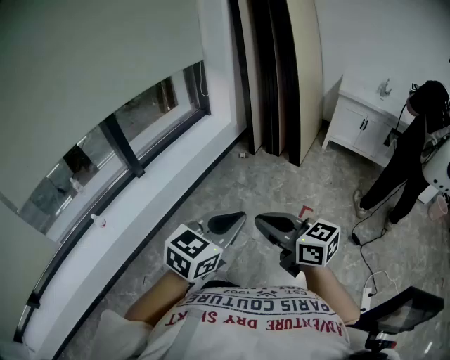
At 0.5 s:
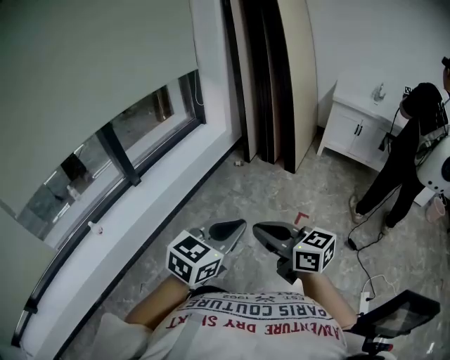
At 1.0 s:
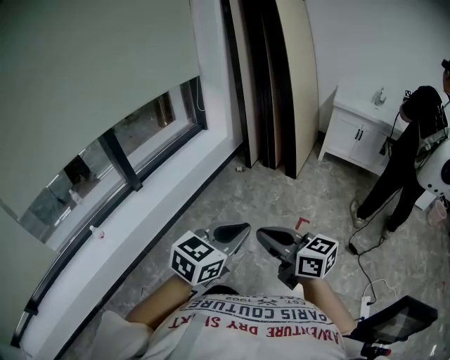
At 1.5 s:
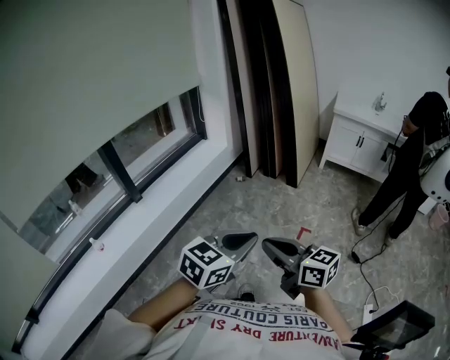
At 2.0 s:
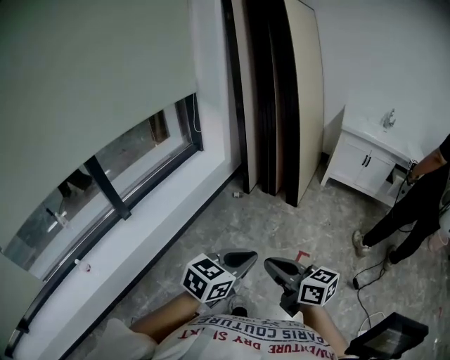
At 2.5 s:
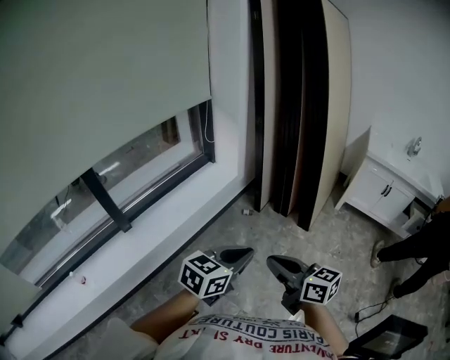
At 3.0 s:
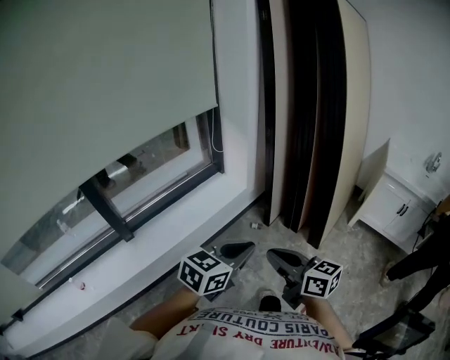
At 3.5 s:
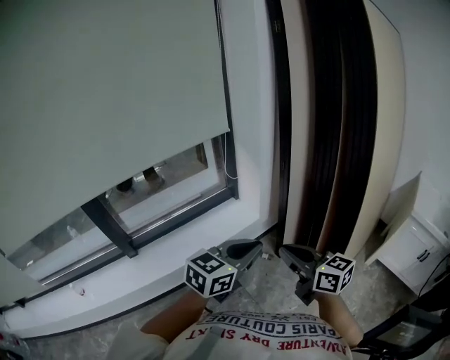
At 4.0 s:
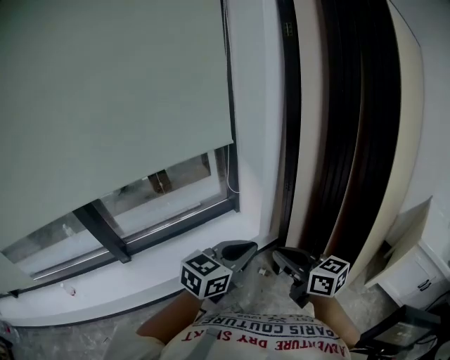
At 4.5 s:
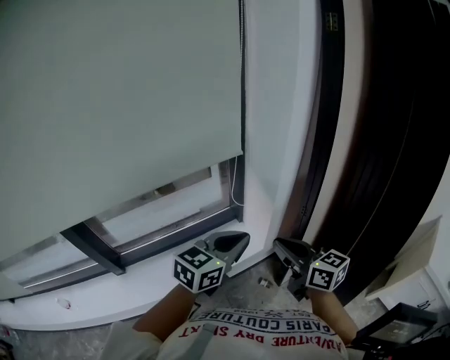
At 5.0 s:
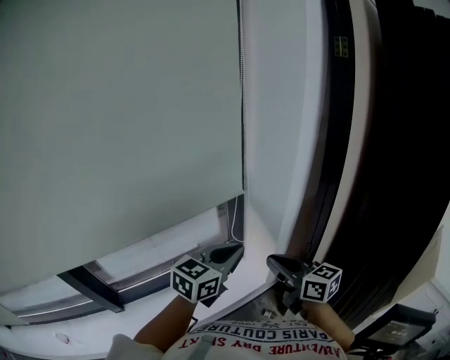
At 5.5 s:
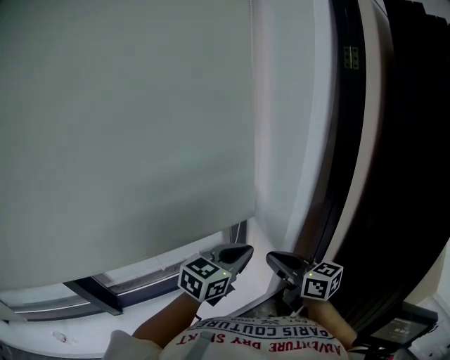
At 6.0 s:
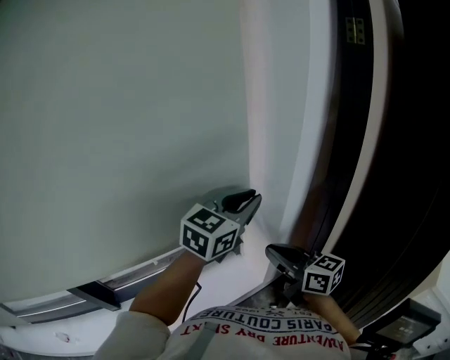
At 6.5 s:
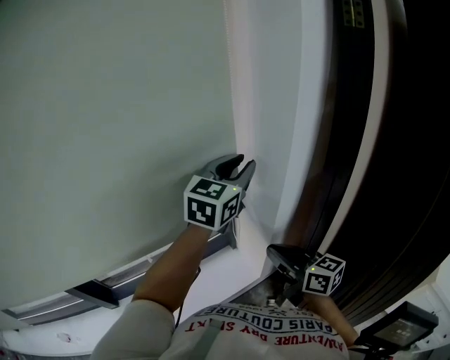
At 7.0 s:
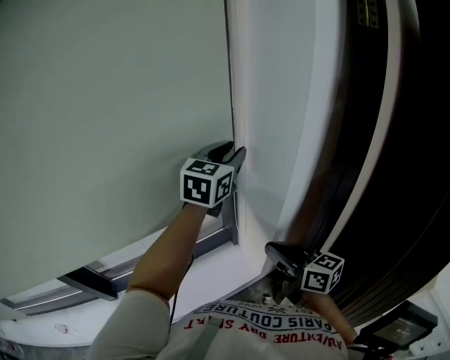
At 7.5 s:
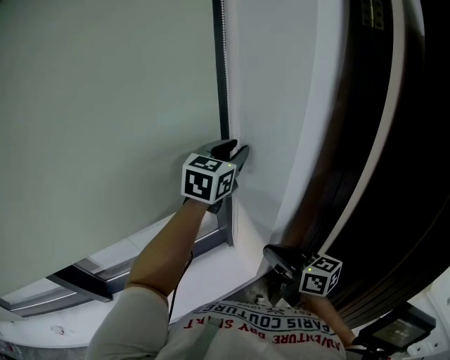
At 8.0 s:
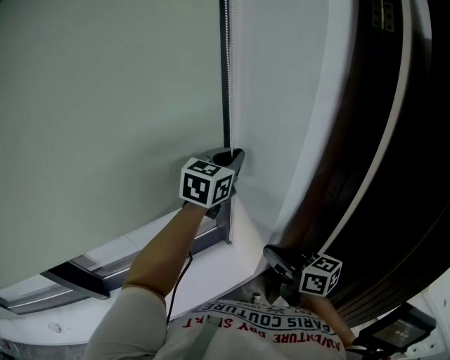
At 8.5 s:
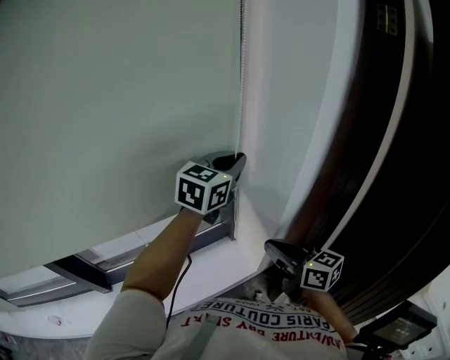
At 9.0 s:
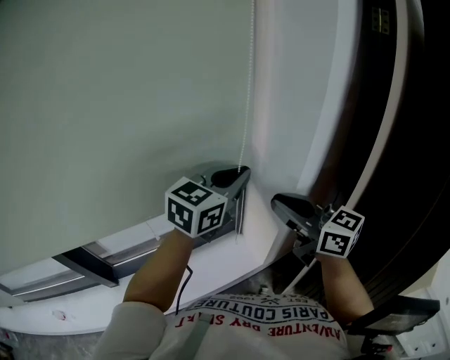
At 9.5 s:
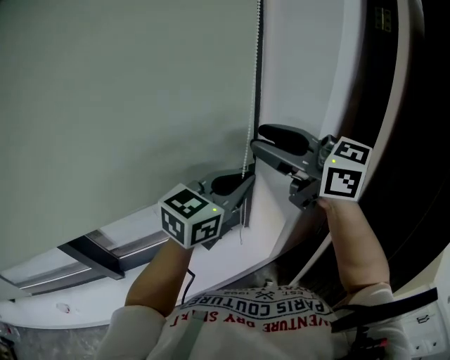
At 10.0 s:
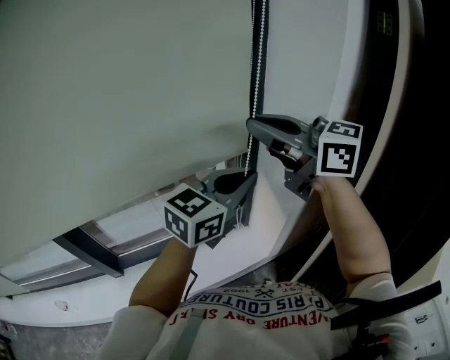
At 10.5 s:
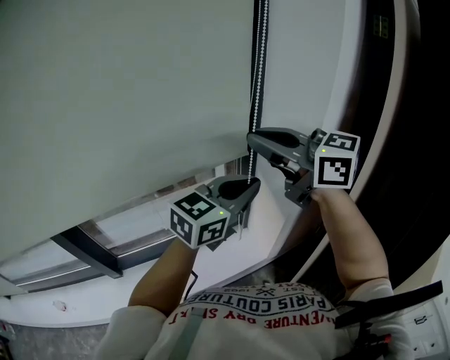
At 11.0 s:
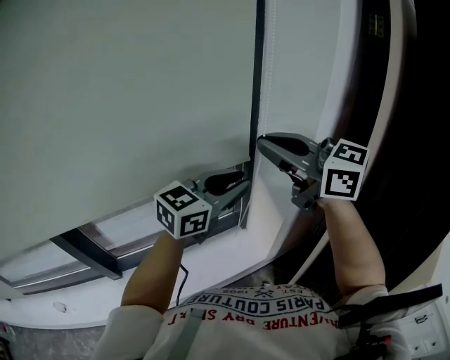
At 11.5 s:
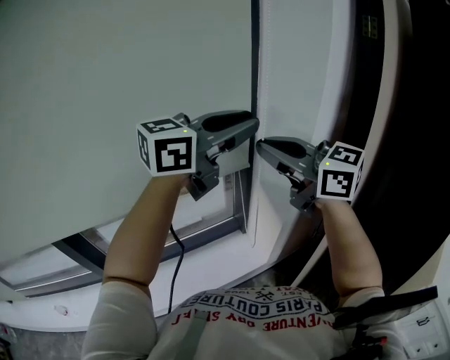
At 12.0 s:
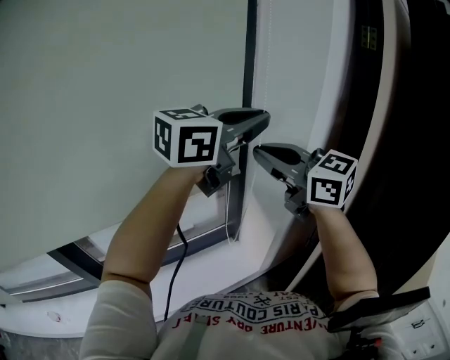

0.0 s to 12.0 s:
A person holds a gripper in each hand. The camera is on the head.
0.0 to 2.0 s: Both grippers travel together forward, approximately 20 cm.
2.0 to 4.0 s: Both grippers are carried about 70 cm. The right gripper rotates about 30 degrees. The left gripper turns by some 30 degrees.
4.0 to 6.0 s: Both grippers move forward, roughly 40 cm.
6.0 to 8.0 s: The left gripper shifts about 15 cm forward.
8.0 to 10.0 s: The right gripper is displaced upward and to the left by roughly 30 cm, turns by about 30 degrees, and opens, then closes again, while the left gripper shifts roughly 20 cm backward.
10.0 to 12.0 s: The left gripper goes roughly 15 cm upward, and opens, then closes again.

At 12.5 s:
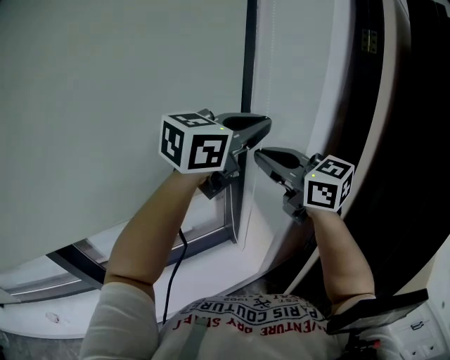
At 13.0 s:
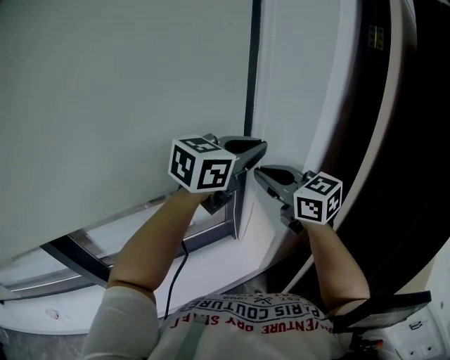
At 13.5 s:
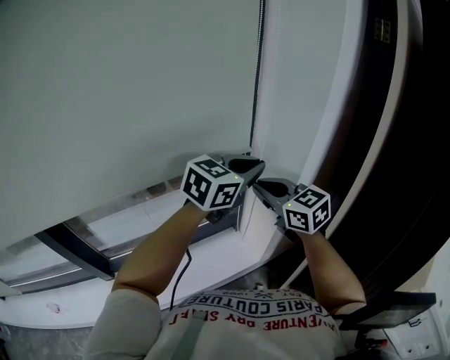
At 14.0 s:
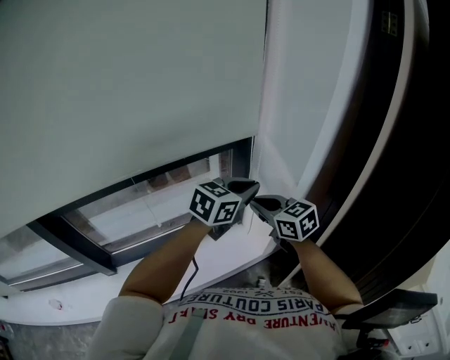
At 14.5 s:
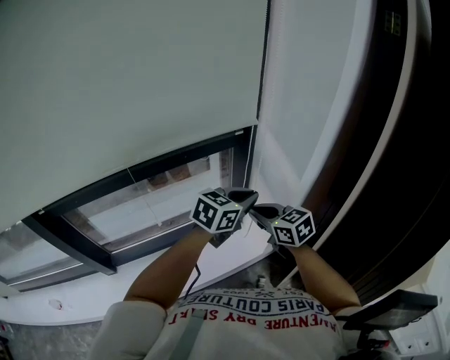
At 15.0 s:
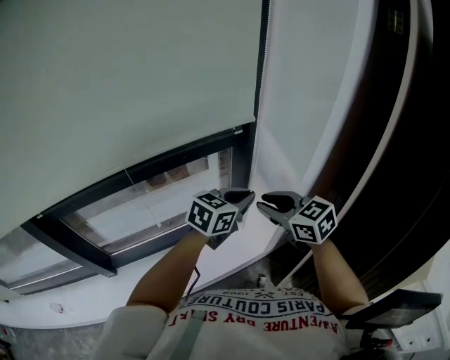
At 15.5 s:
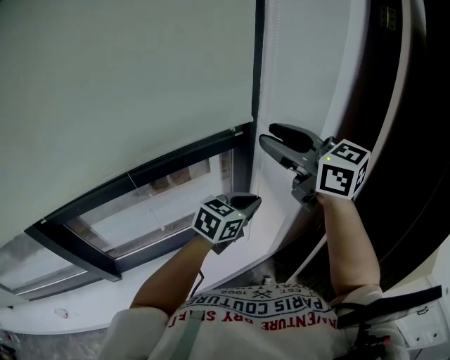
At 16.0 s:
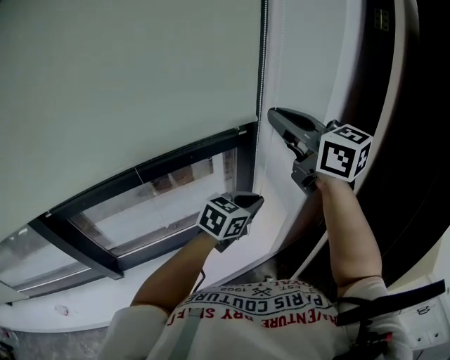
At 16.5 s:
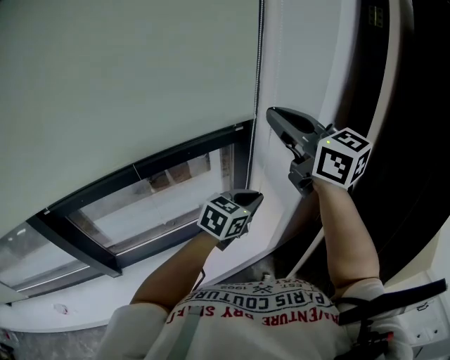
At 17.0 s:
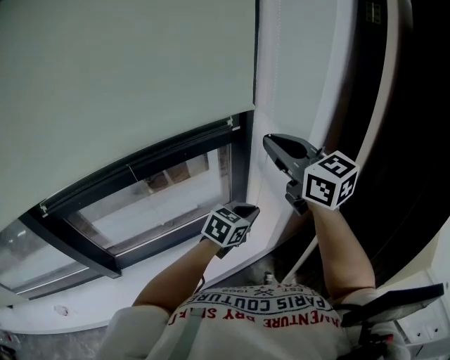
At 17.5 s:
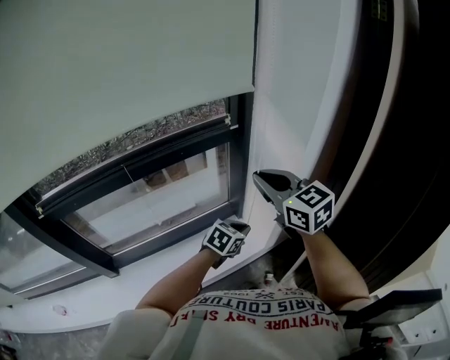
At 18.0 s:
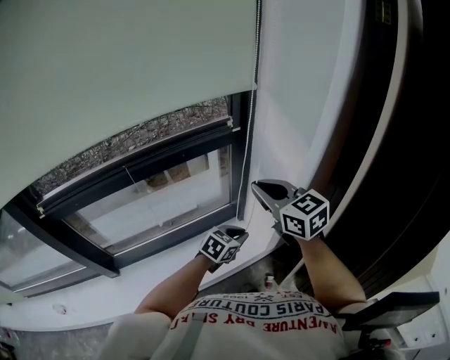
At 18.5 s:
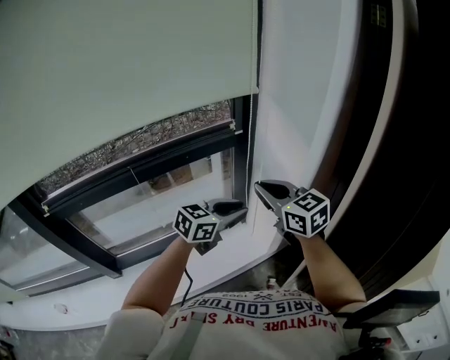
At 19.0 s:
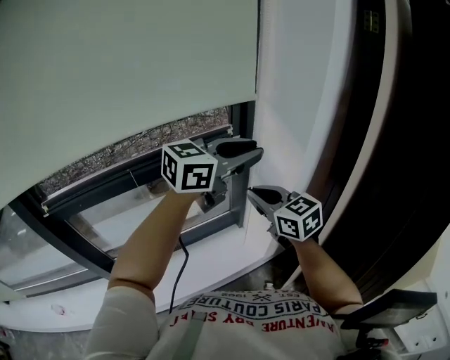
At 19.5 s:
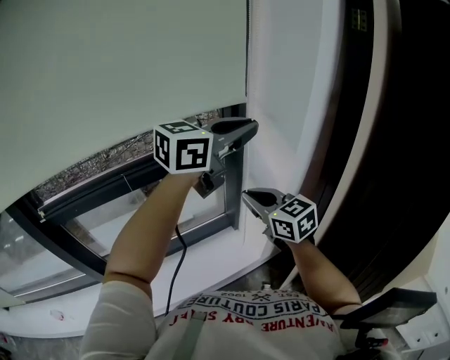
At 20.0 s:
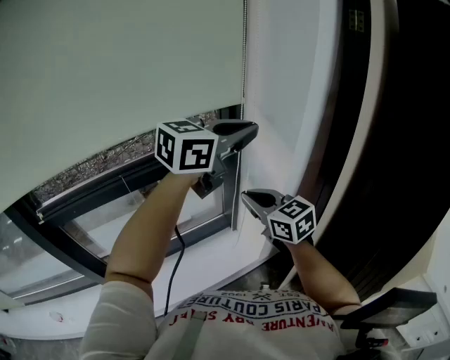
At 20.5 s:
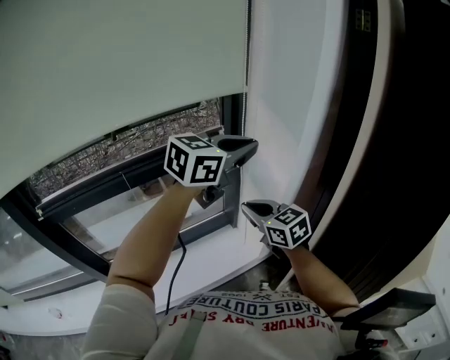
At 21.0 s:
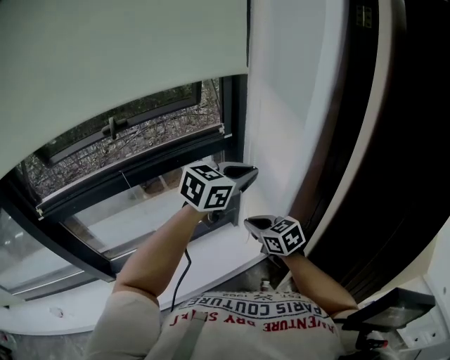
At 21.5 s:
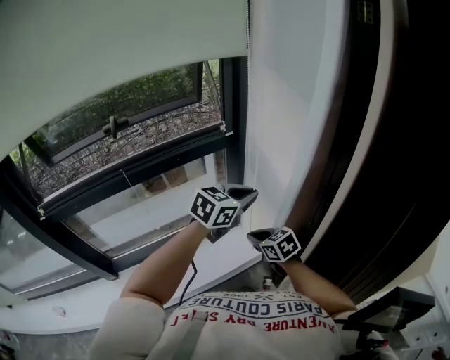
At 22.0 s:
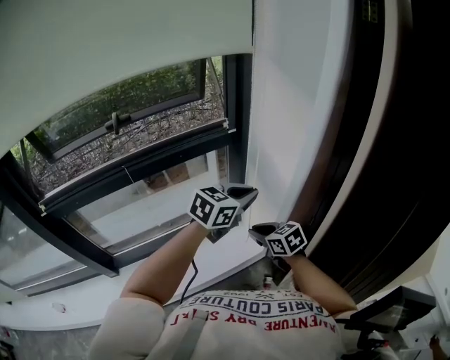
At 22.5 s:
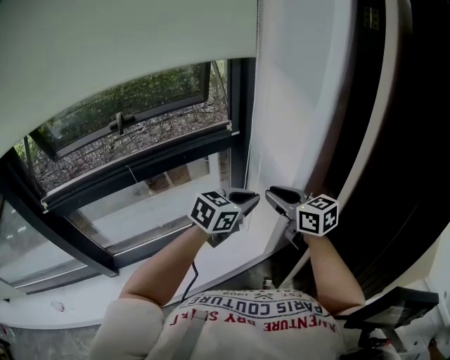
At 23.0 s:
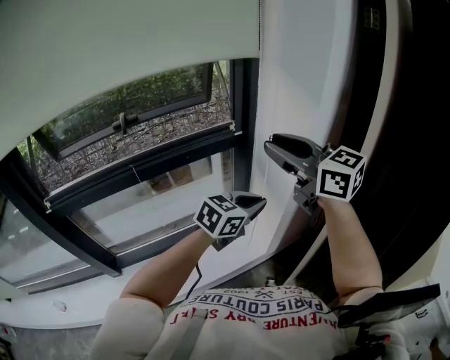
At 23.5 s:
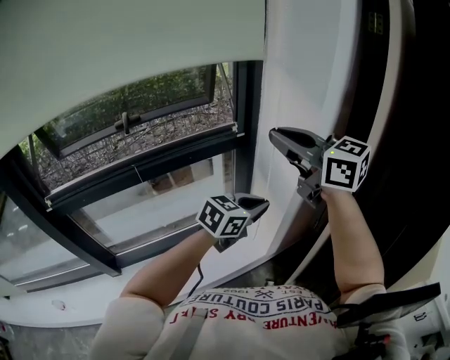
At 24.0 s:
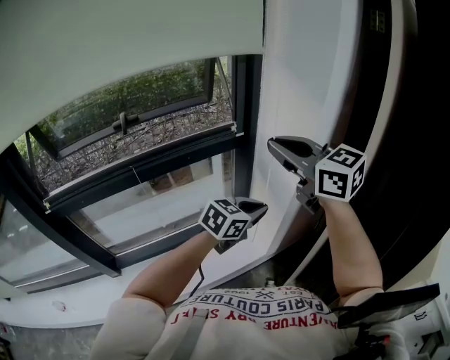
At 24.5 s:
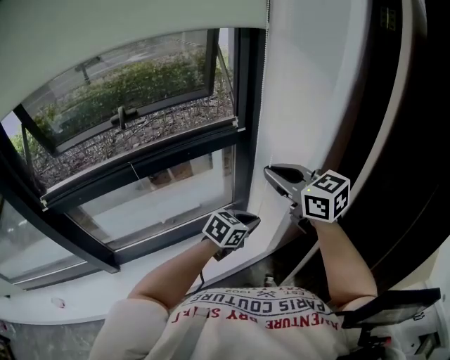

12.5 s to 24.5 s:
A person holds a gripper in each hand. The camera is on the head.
12.5 to 14.5 s: Both grippers travel together downward, roughly 30 cm. The left gripper swivels roughly 20 degrees; the right gripper changes its angle by roughly 30 degrees.
14.5 to 16.5 s: The right gripper goes about 35 cm upward, tips its fingers upward by approximately 30 degrees, and opens and closes again.
16.5 to 18.5 s: The right gripper is displaced downward by about 20 cm; the left gripper moves about 20 cm downward and comes back, and opens its fingers.
18.5 to 20.5 s: The right gripper moves downward, roughly 5 cm; the left gripper heads upward, covering roughly 20 cm, and closes.
20.5 to 22.5 s: The right gripper is displaced to the right by about 5 cm, and reaches roughly 15 cm downward, then returns; the left gripper goes roughly 20 cm downward.
22.5 to 24.5 s: The left gripper heads downward, covering about 10 cm. Meanwhile the right gripper travels upward by roughly 10 cm.

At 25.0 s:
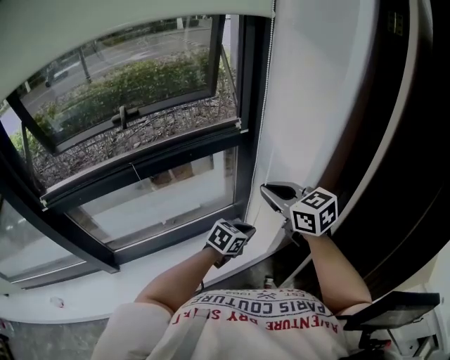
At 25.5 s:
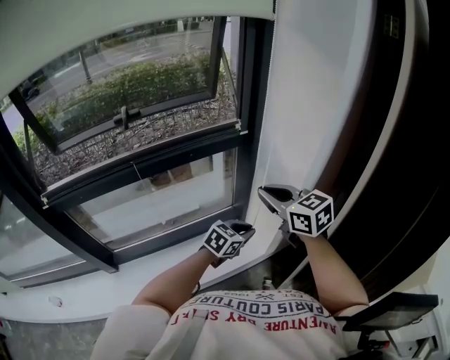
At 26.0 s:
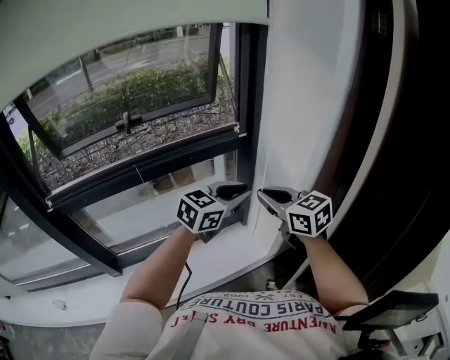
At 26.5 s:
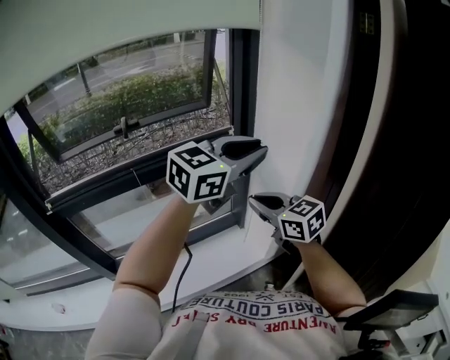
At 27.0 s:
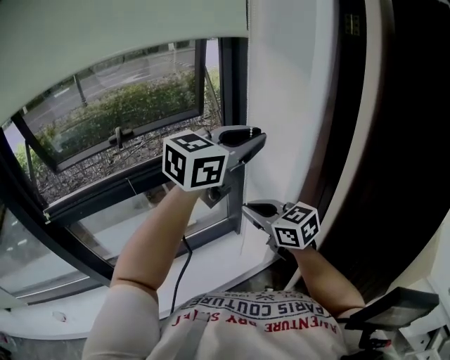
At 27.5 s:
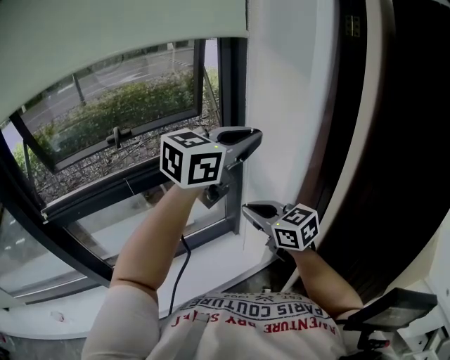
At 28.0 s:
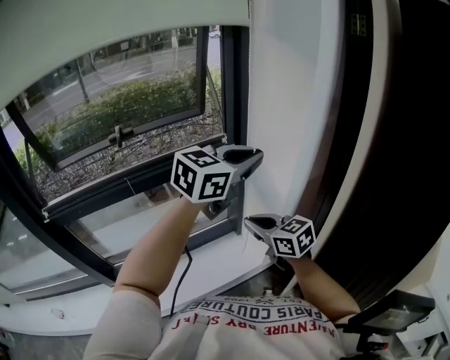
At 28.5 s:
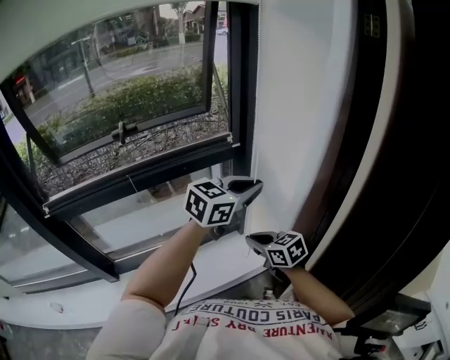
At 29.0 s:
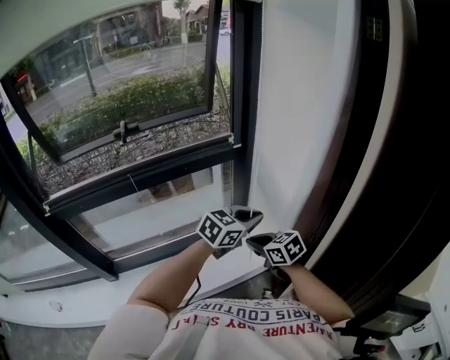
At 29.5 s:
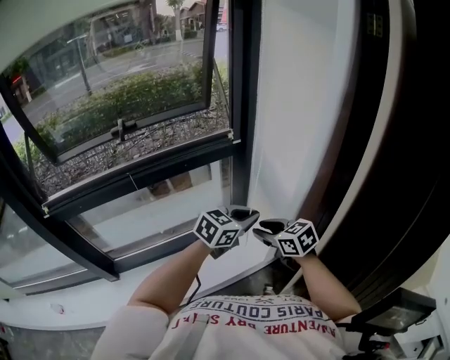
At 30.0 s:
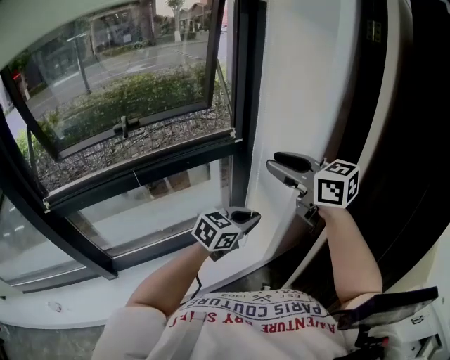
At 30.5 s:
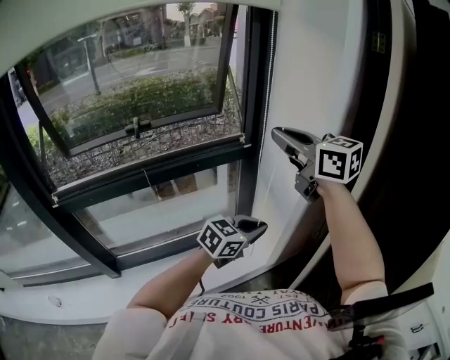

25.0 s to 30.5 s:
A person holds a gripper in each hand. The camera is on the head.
25.0 to 27.0 s: The left gripper moves upward, approximately 40 cm, and tilts its fingers about 30 degrees upward.
27.0 to 28.5 s: The two grippers go about 15 cm downward.
28.5 to 30.5 s: The right gripper is displaced upward by about 35 cm, swivels roughly 30 degrees, and opens and closes again. Meanwhile the left gripper heads downward and backward, covering about 15 cm.
